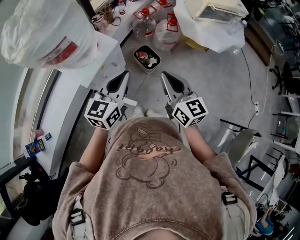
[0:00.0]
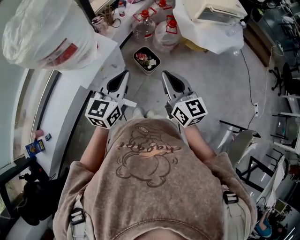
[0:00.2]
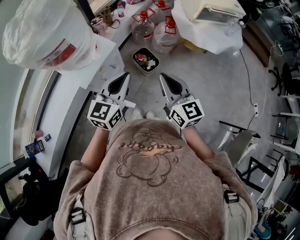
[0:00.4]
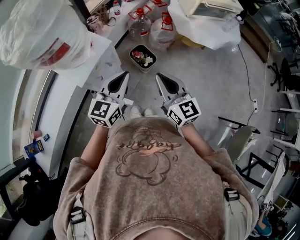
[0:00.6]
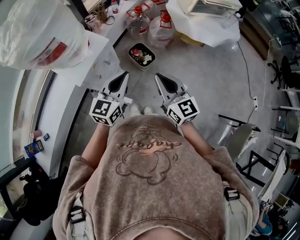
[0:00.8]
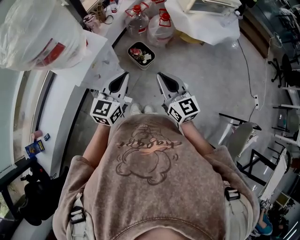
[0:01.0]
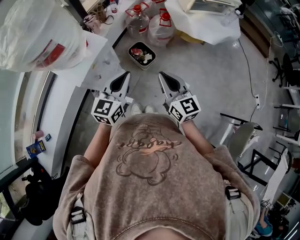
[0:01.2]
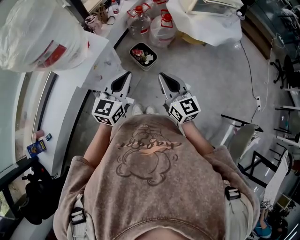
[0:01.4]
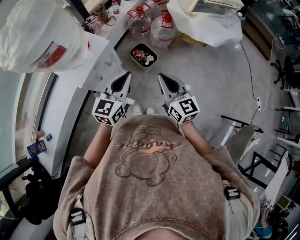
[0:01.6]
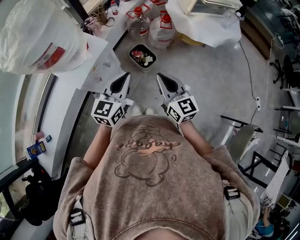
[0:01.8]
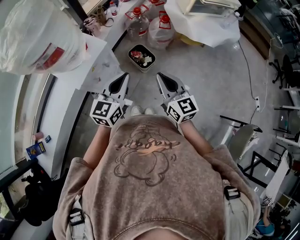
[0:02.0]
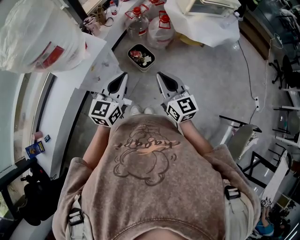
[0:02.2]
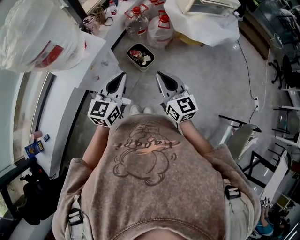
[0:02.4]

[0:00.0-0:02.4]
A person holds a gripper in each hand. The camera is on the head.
0:00.0 to 0:01.2: The left gripper changes place by some 5 cm, while the right gripper moves about 5 cm.
0:01.2 to 0:02.4: Both grippers stay about where they are.

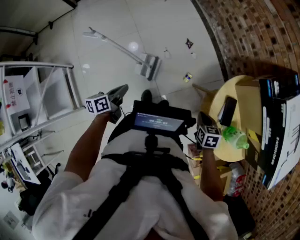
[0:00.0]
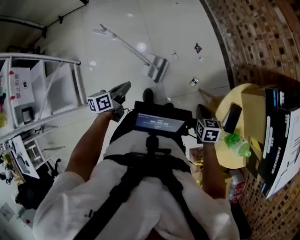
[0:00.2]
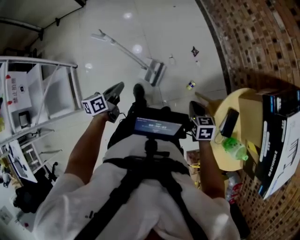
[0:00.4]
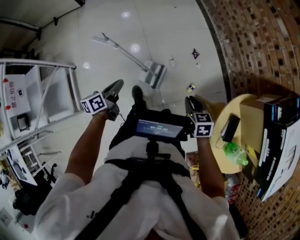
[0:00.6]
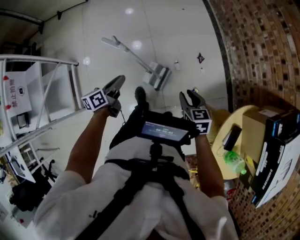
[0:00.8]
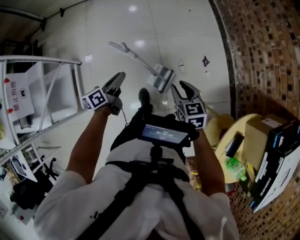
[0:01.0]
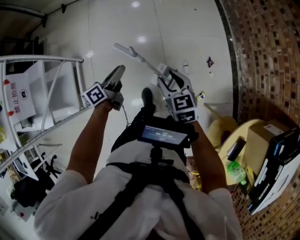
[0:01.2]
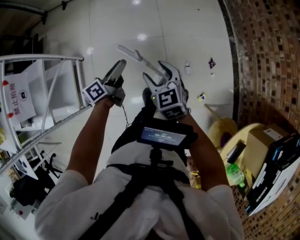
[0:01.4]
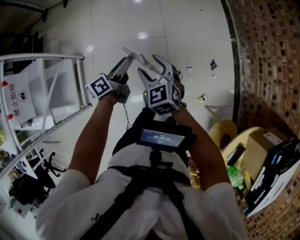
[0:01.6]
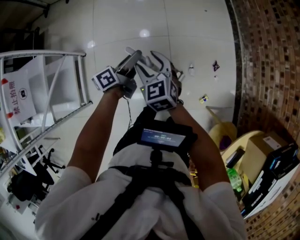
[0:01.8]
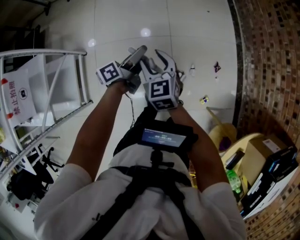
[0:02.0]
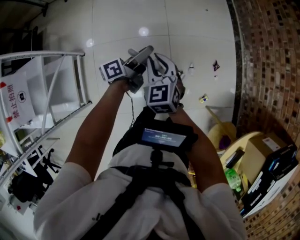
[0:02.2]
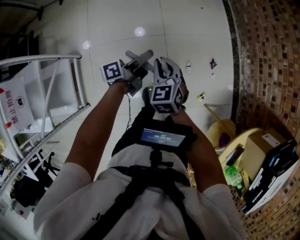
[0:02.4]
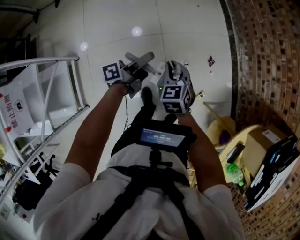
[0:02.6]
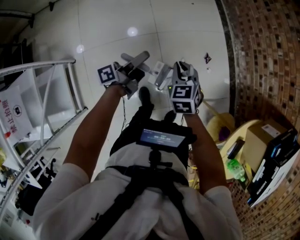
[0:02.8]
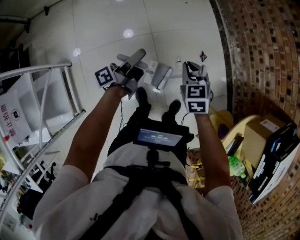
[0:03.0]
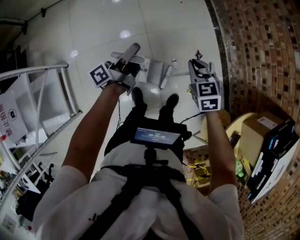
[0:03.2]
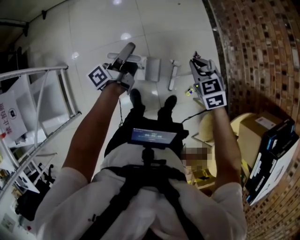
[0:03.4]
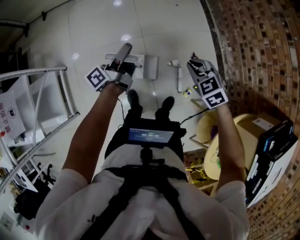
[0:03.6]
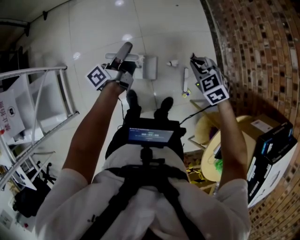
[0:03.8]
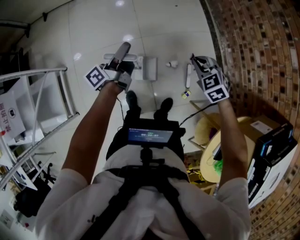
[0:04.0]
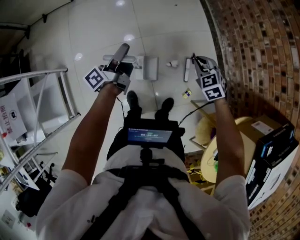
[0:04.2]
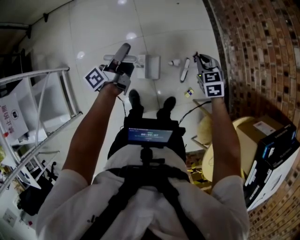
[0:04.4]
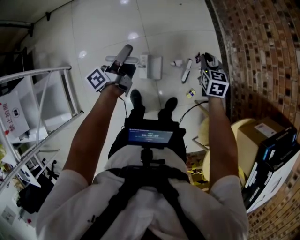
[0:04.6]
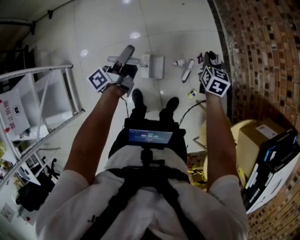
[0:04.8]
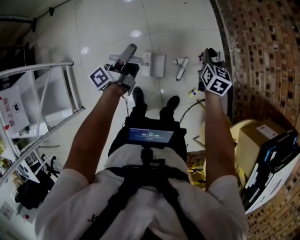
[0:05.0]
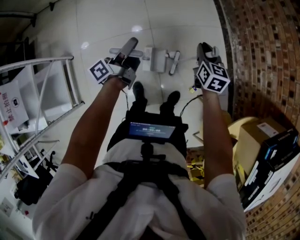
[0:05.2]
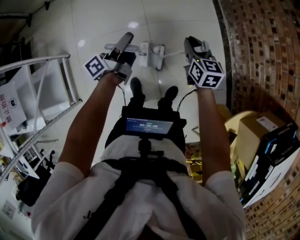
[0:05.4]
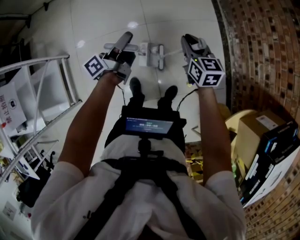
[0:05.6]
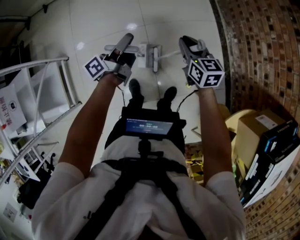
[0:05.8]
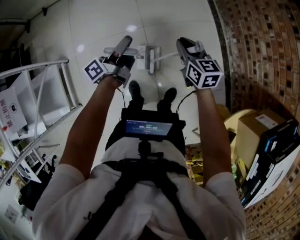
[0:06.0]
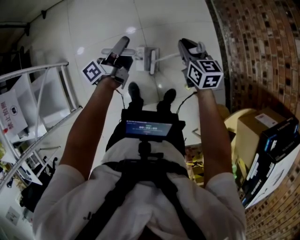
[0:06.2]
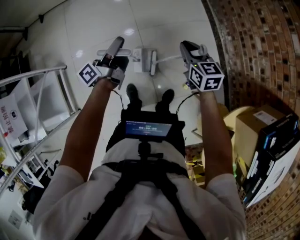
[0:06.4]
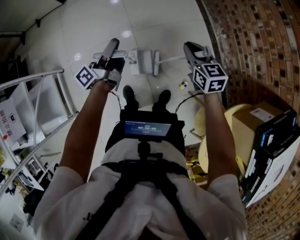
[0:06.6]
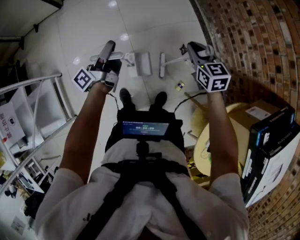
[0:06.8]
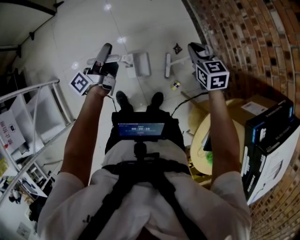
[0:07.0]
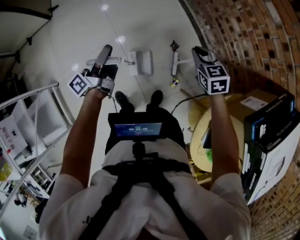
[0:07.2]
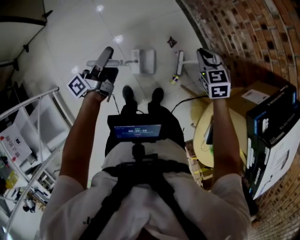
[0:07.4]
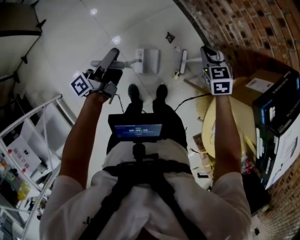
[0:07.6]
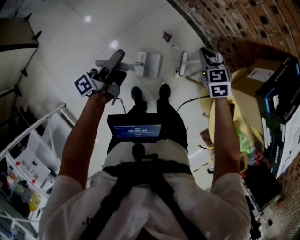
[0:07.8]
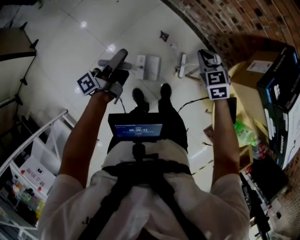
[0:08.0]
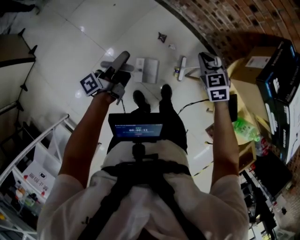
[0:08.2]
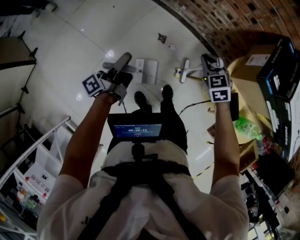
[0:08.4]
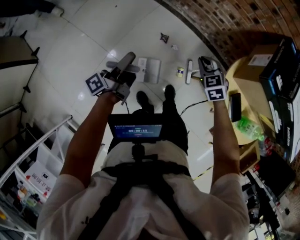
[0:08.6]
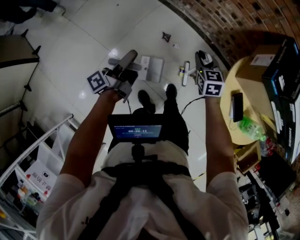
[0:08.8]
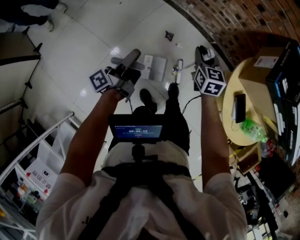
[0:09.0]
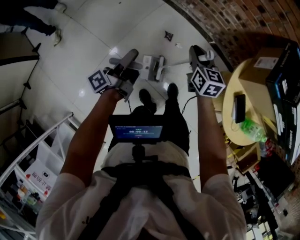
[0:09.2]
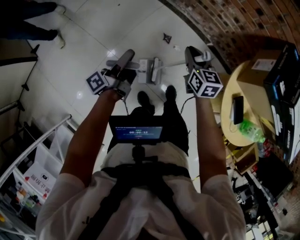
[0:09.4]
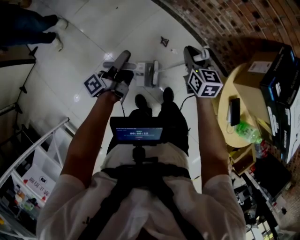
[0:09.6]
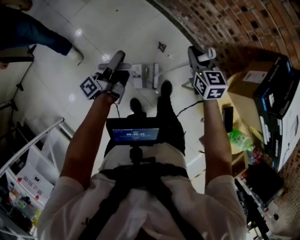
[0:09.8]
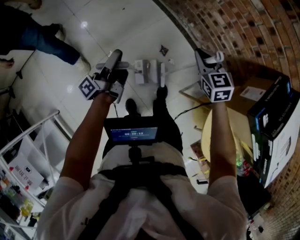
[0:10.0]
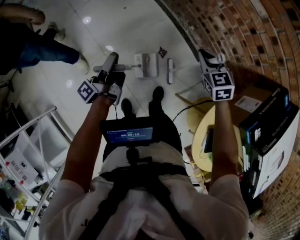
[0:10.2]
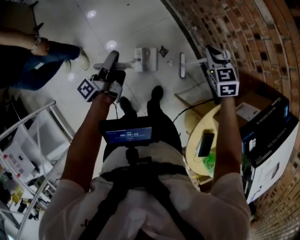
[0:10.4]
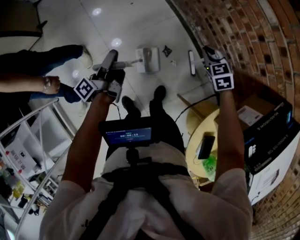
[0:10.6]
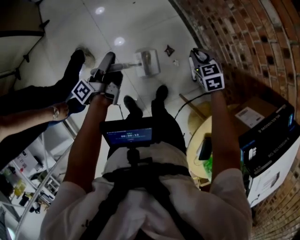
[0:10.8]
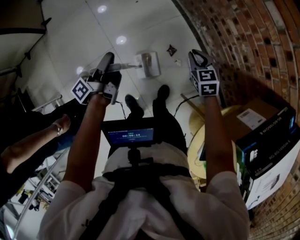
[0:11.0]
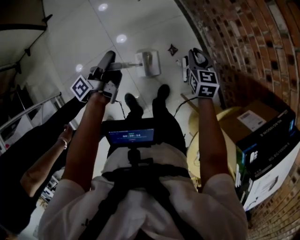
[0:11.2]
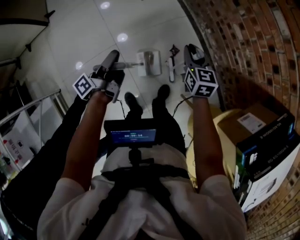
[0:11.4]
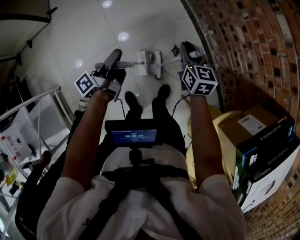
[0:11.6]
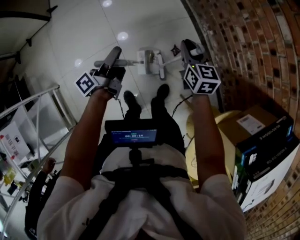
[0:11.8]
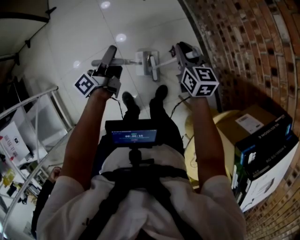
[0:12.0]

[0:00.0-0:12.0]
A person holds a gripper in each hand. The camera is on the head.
0:00.0 to 0:01.6: The right gripper shifts by roughly 60 cm, rolls counterclockwise, seen from behind, by roughly 40 degrees, and opens up.
0:01.6 to 0:03.0: The right gripper shifts by approximately 20 cm, swivels roughly 30 degrees, and closes.
0:03.0 to 0:04.4: The right gripper moves about 20 cm.
0:04.4 to 0:06.0: The right gripper changes place by roughly 10 cm, and swivels some 30 degrees.
0:06.0 to 0:07.6: The right gripper ends up roughly 30 cm from where it was, and rotates approximately 30 degrees.
0:07.6 to 0:09.0: The right gripper rotates roughly 40 degrees.
0:09.0 to 0:10.4: The right gripper moves roughly 20 cm, and turns by about 40 degrees.
0:10.4 to 0:12.0: The right gripper travels downward and back again, roughly 10 cm each way, and swivels roughly 30 degrees.

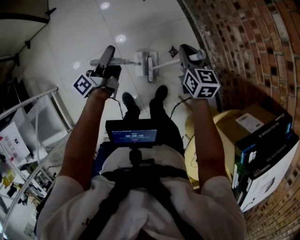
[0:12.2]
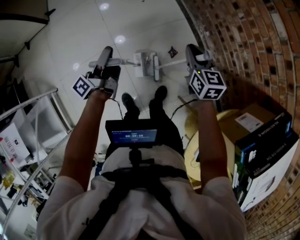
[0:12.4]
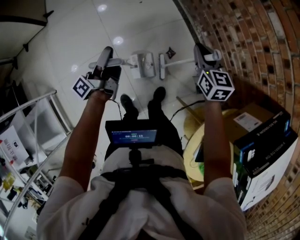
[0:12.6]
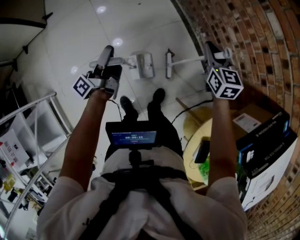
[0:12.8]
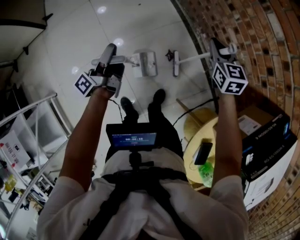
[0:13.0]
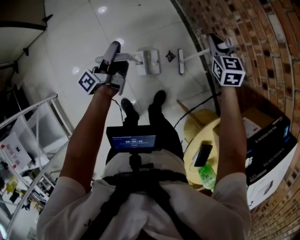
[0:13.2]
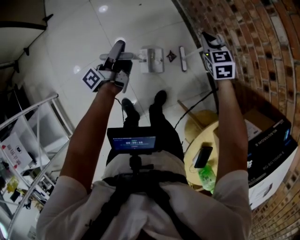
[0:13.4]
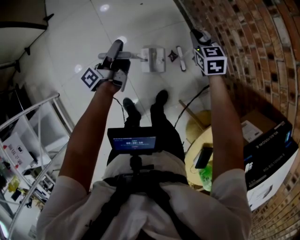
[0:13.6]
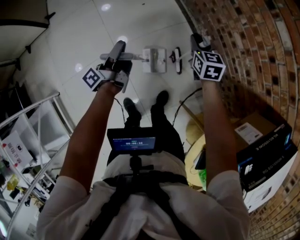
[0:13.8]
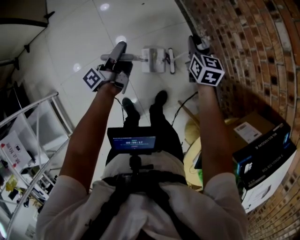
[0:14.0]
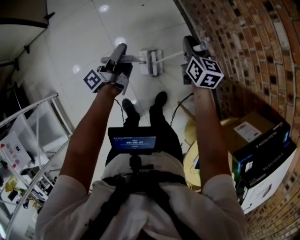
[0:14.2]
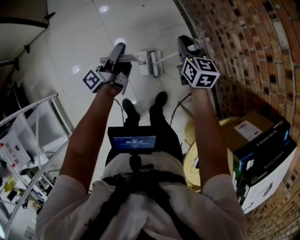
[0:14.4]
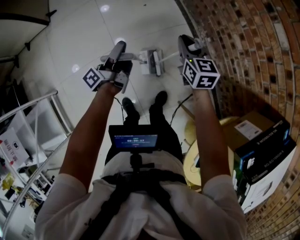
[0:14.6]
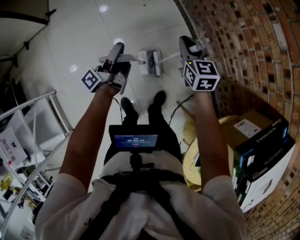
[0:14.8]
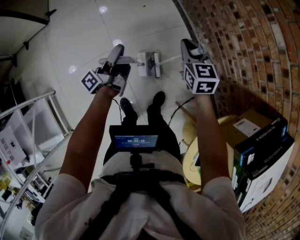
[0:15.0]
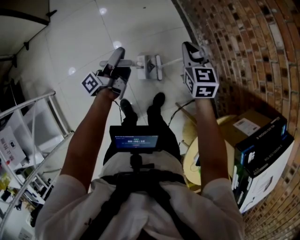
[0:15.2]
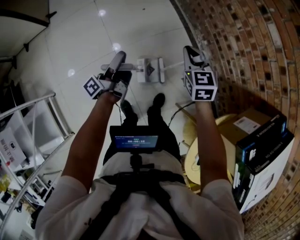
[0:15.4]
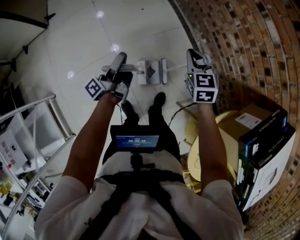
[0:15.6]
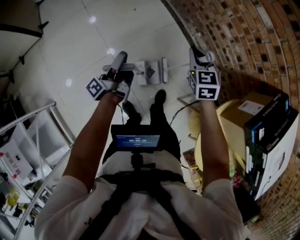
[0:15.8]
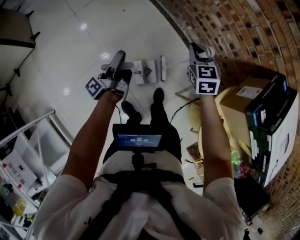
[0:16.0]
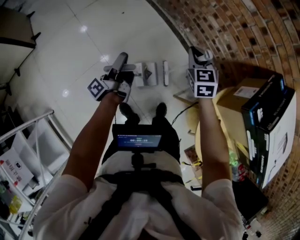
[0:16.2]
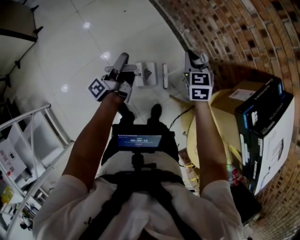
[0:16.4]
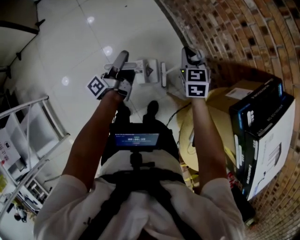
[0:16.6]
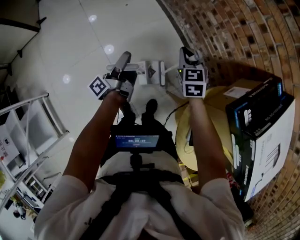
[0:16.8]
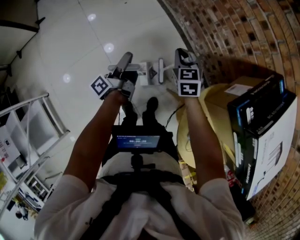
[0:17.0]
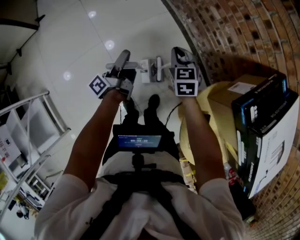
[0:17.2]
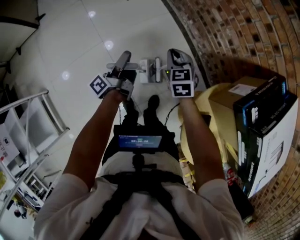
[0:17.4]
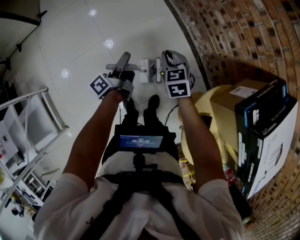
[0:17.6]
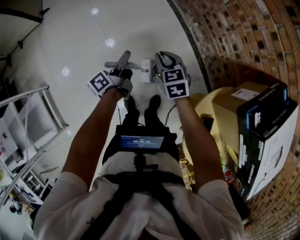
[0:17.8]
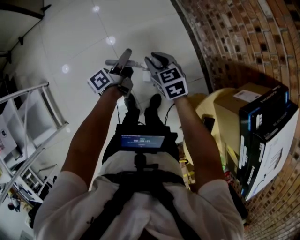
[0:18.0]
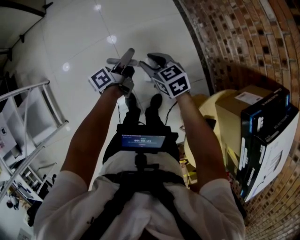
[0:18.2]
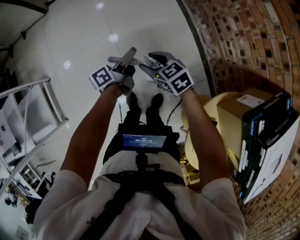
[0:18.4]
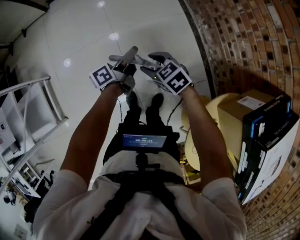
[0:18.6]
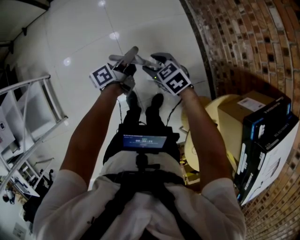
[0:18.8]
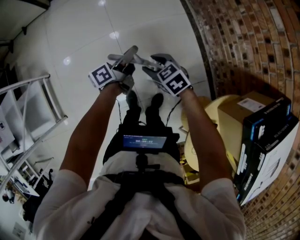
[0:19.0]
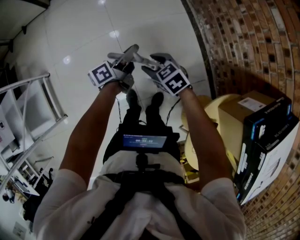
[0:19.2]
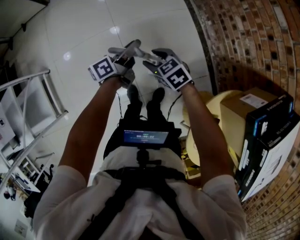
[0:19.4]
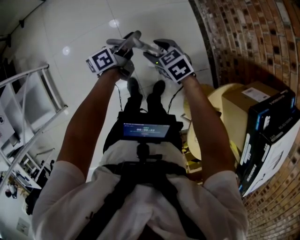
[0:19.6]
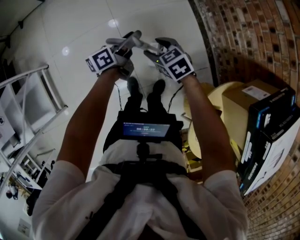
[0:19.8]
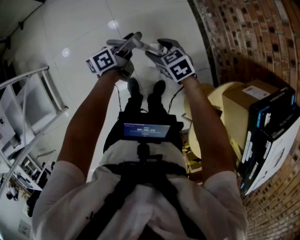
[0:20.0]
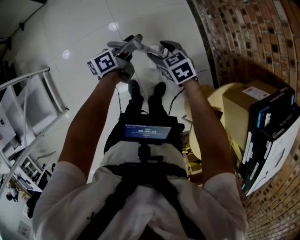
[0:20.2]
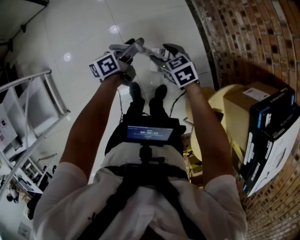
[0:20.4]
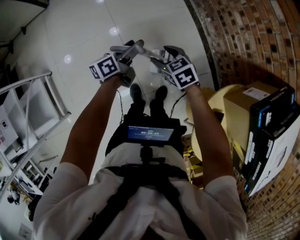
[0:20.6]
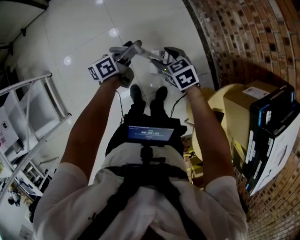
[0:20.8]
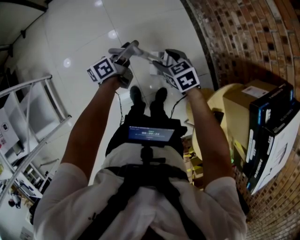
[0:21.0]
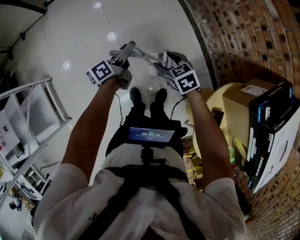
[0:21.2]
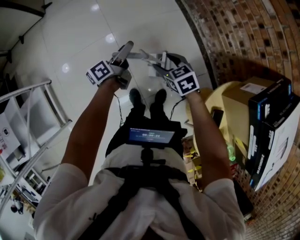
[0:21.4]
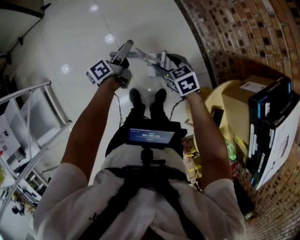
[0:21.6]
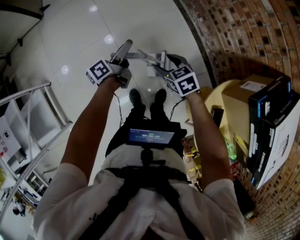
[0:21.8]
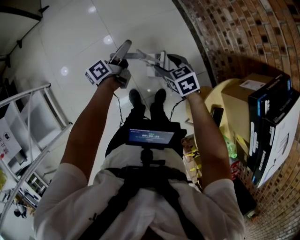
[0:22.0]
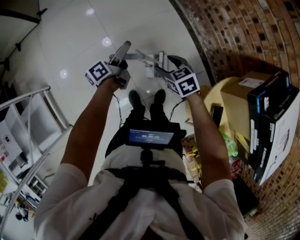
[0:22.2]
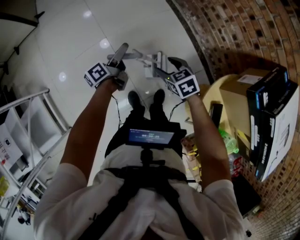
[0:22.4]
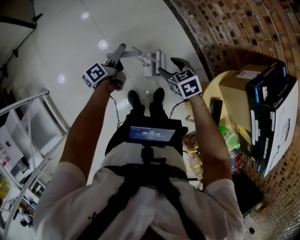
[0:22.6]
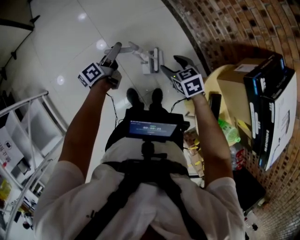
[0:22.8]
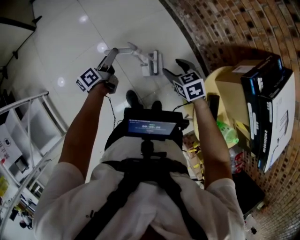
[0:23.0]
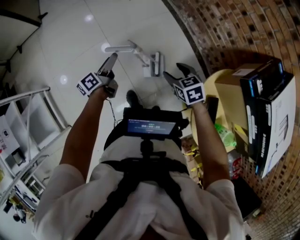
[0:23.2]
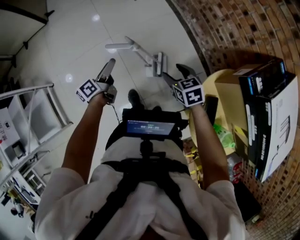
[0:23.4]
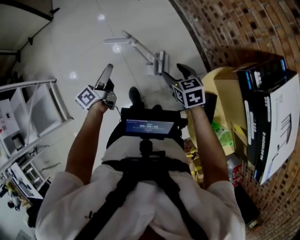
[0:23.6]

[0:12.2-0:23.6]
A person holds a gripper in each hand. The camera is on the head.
0:12.2 to 0:13.6: The right gripper ends up some 15 cm from where it was, and turns by some 20 degrees.
0:13.6 to 0:15.0: The right gripper moves roughly 10 cm.
0:15.0 to 0:16.4: The right gripper changes place by roughly 15 cm.
0:16.4 to 0:17.8: The right gripper changes place by some 15 cm, and swivels roughly 20 degrees.
0:17.8 to 0:19.4: The right gripper moves about 10 cm, rotates roughly 30 degrees, and opens up.
0:22.2 to 0:23.6: The right gripper changes place by some 15 cm.
